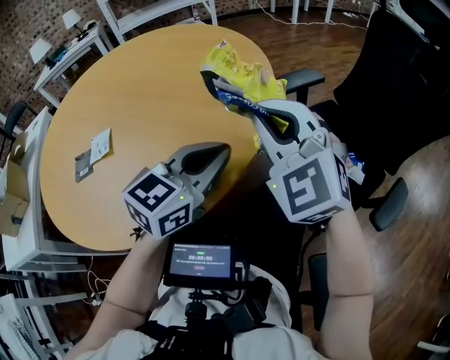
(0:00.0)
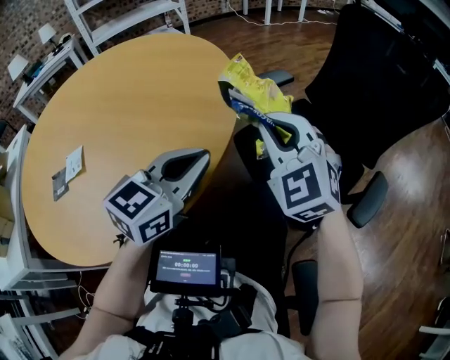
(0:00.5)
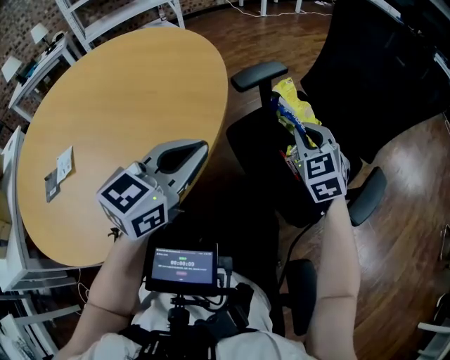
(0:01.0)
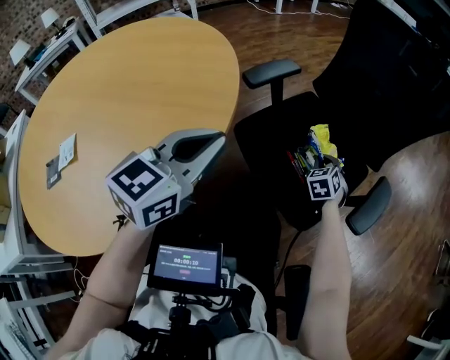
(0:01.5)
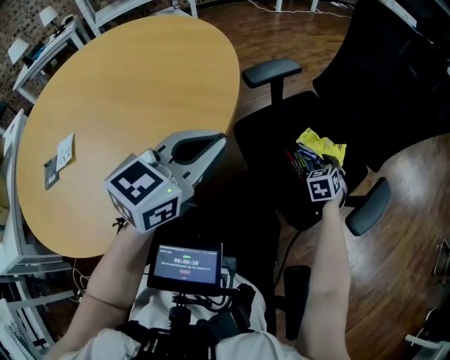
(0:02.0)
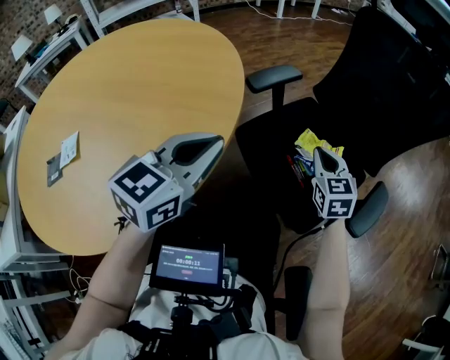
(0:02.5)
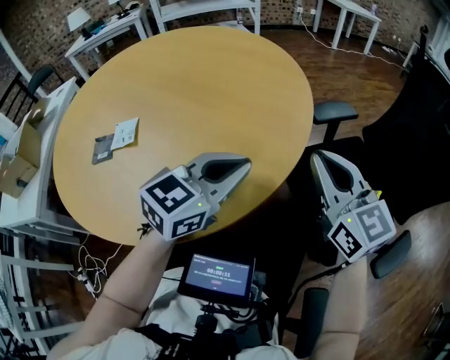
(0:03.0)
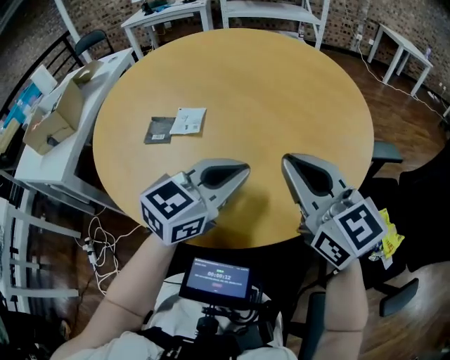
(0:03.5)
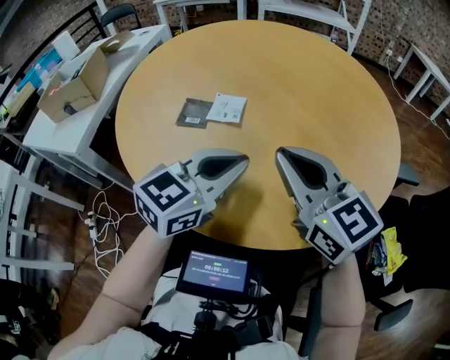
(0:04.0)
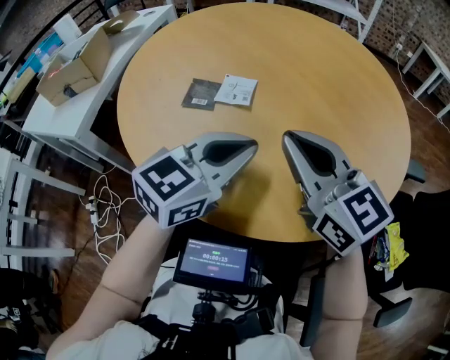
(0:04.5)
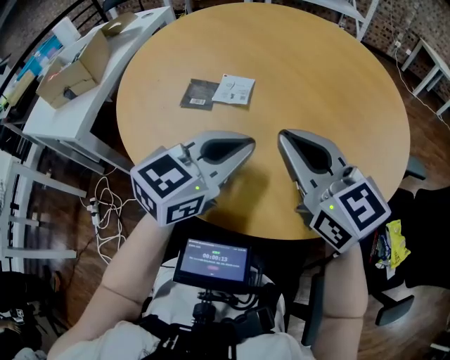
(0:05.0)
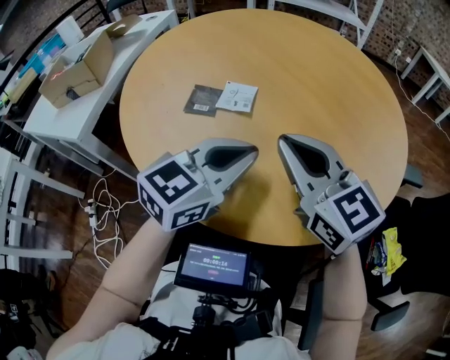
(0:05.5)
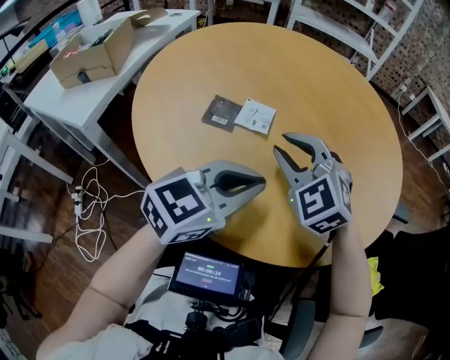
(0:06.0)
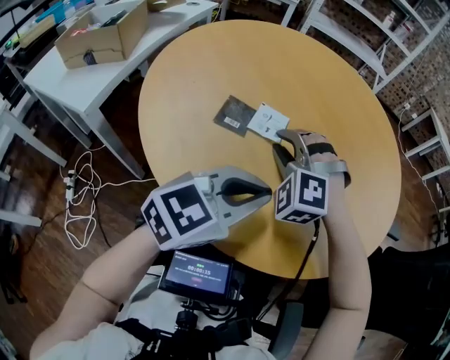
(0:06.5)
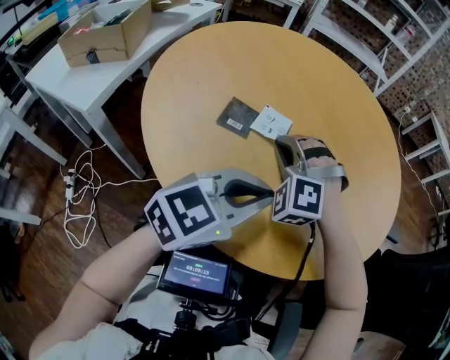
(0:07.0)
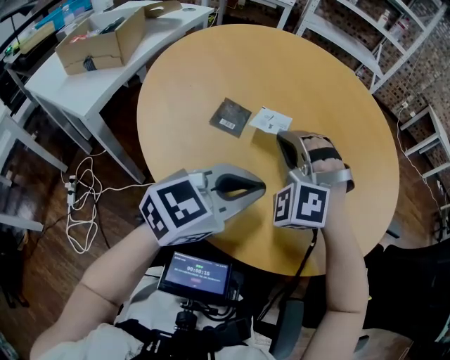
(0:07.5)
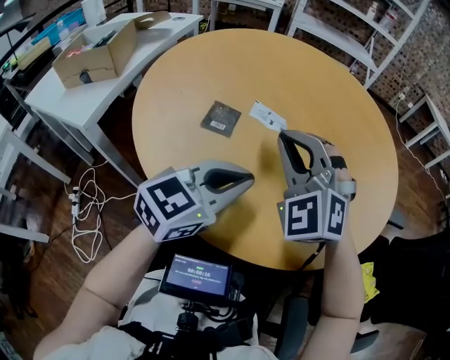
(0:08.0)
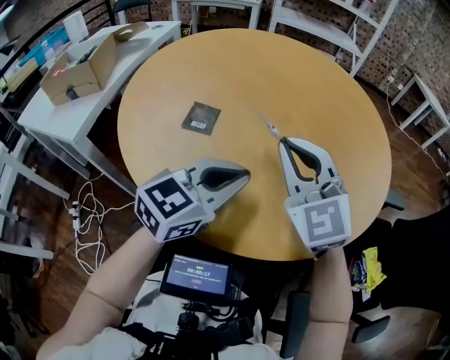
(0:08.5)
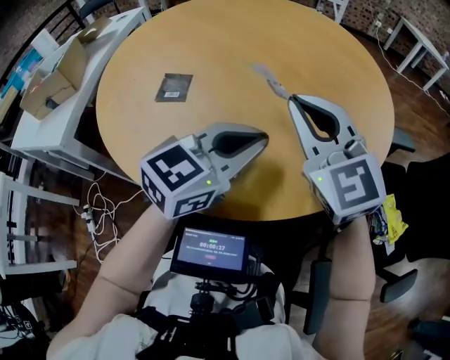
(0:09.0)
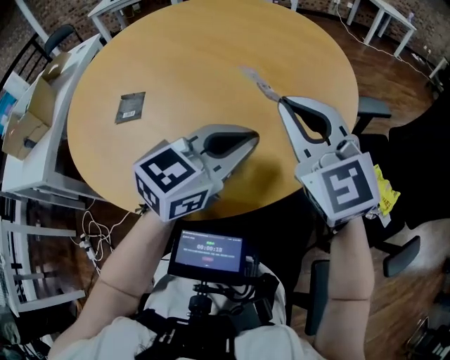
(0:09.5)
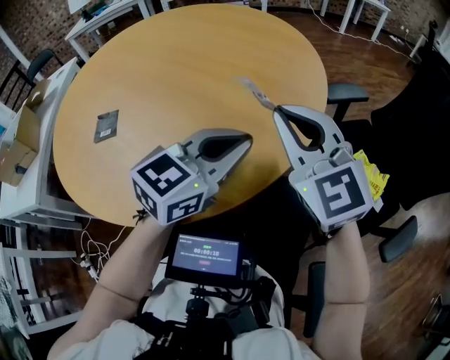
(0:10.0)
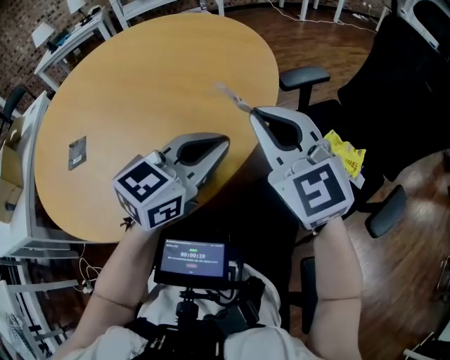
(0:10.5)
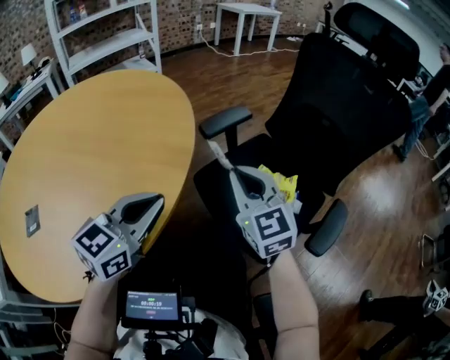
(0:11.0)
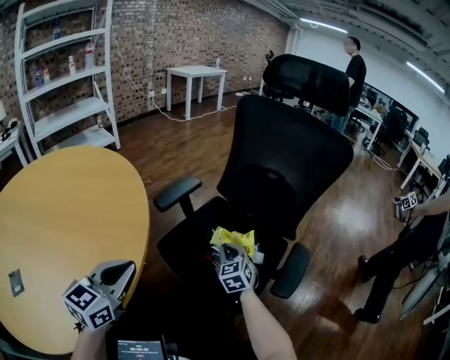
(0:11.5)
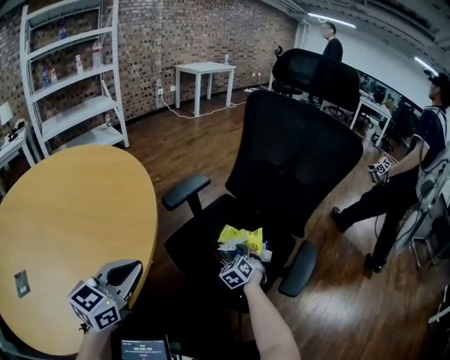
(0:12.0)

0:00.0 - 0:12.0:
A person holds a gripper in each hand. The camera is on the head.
0:00.0 - 0:02.0: The left gripper changes place by some 10 cm; the right gripper shifts by some 50 cm, points its fingers about 30 degrees further downward, and opens.
0:02.0 - 0:04.0: The left gripper moves roughly 35 cm, and swivels roughly 30 degrees; the right gripper ends up about 70 cm from where it was, angles its fingers upward, by some 40 degrees, and closes its fingers.
0:04.0 - 0:06.0: The right gripper moves to the left, forward and downward, some 10 cm, and rotates around the line of its fingers by some 40 degrees, counterclockwise from behind.
0:06.0 - 0:08.0: The right gripper goes about 5 cm upward.
0:08.0 - 0:10.0: The grippers both shift to the right by roughly 25 cm. The right gripper rolls clockwise, seen from behind, by some 40 degrees. Meanwhile the left gripper swivels approximately 20 degrees.
0:10.0 - 0:12.0: The left gripper ends up some 10 cm from where it was. Meanwhile the right gripper shifts by about 50 cm, tilts its fingers some 30 degrees downward, and opens.

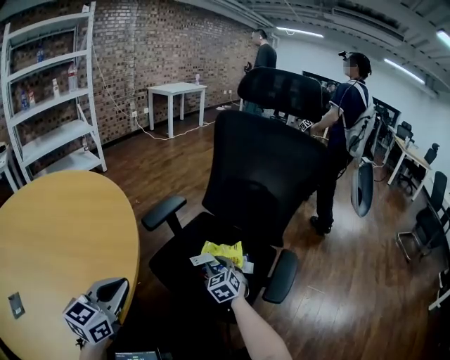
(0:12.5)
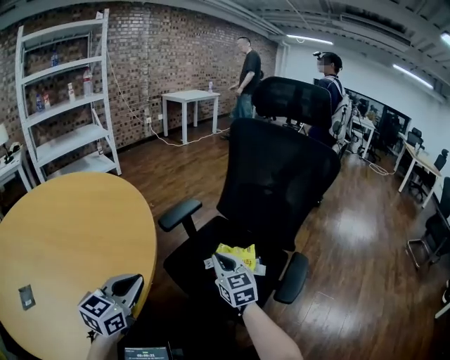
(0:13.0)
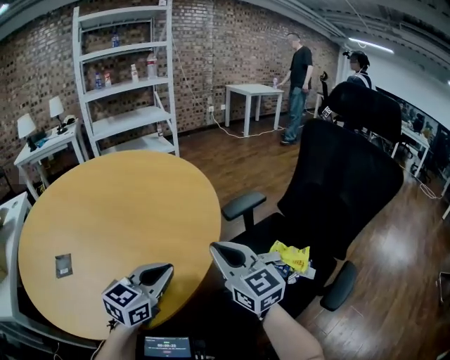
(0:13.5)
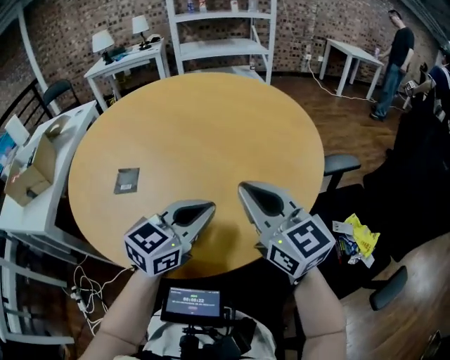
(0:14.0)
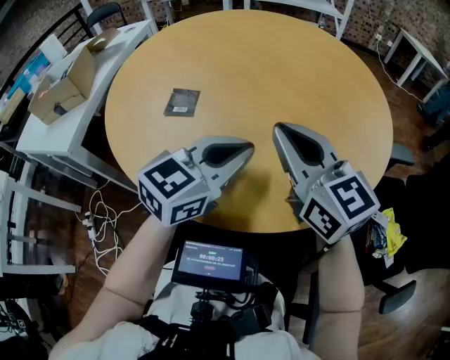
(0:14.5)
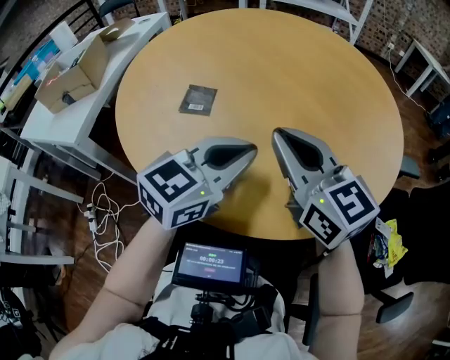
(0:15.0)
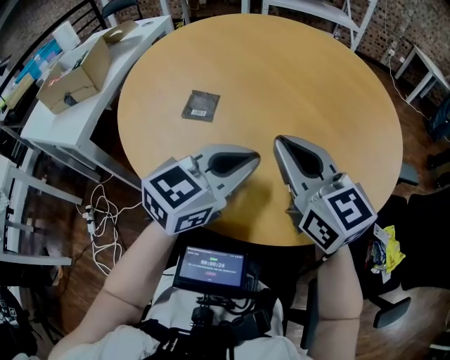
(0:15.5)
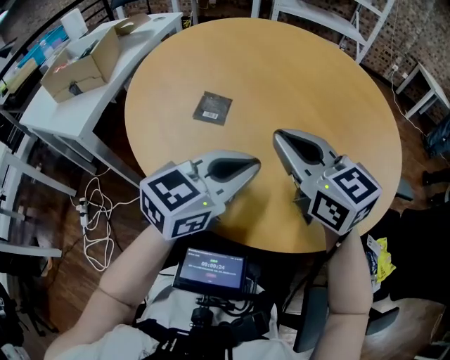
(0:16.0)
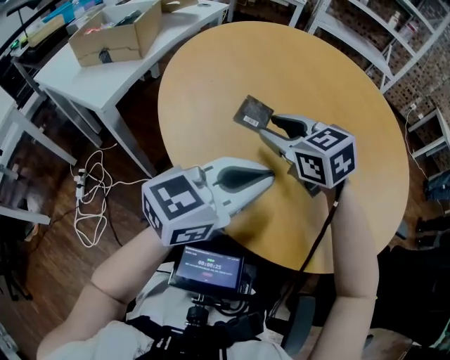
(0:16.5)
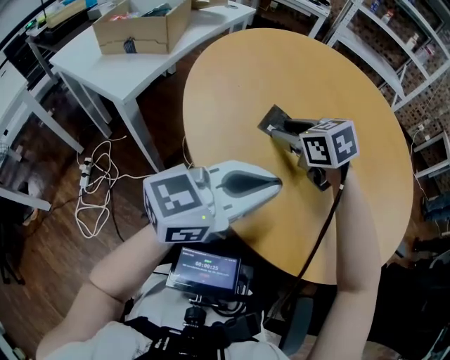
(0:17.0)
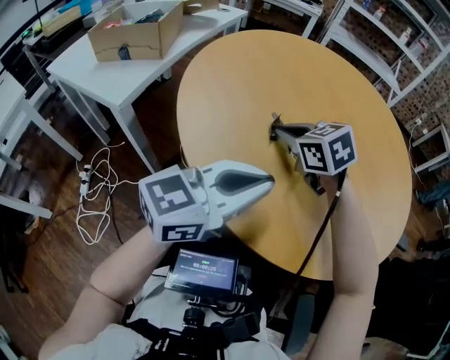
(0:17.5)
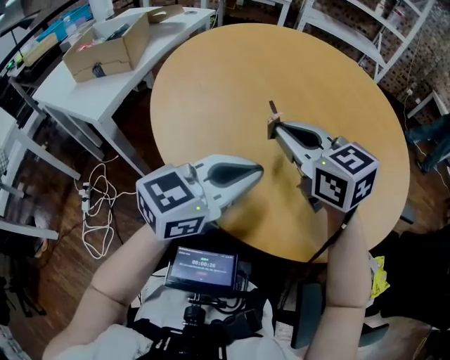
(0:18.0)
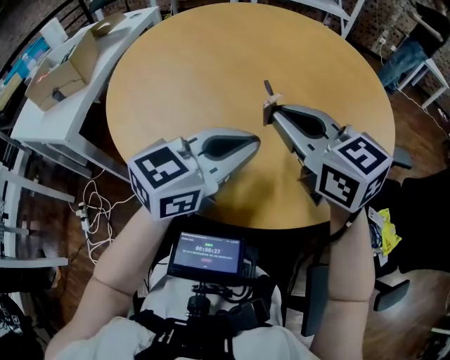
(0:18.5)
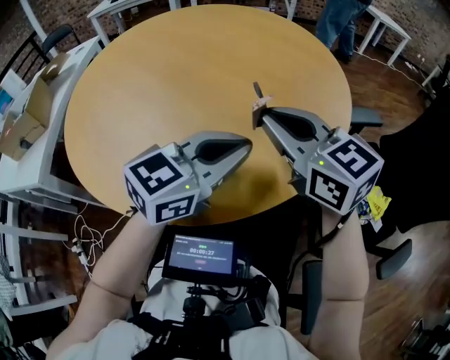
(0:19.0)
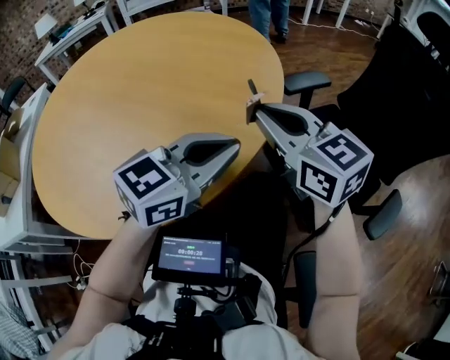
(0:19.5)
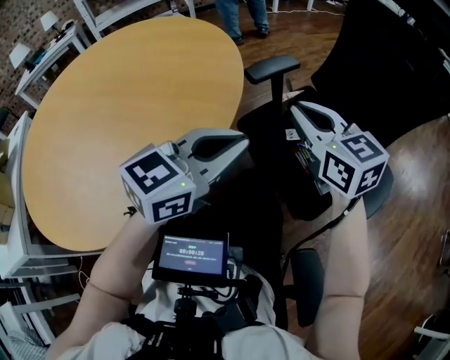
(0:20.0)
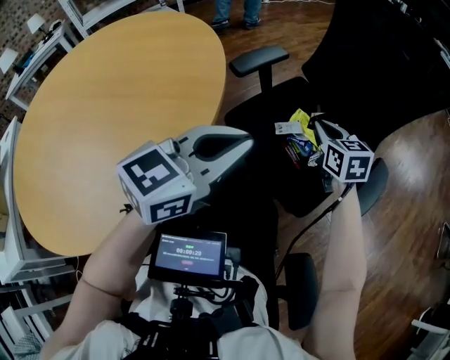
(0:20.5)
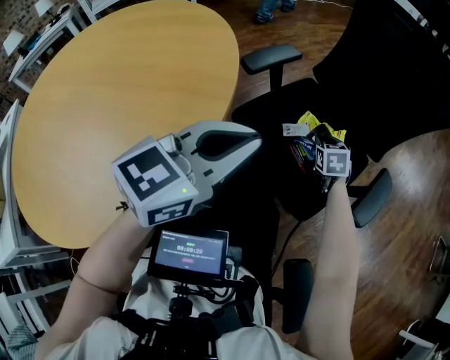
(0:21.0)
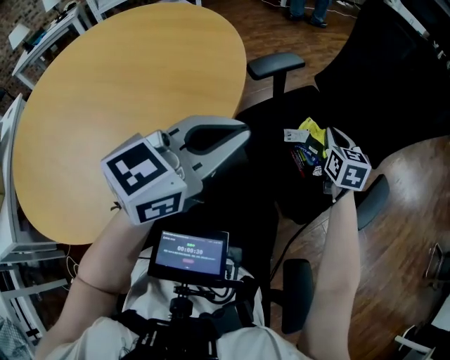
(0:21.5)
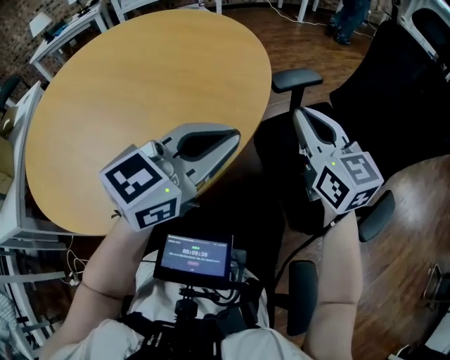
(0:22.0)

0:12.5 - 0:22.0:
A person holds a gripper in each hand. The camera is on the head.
0:12.5 - 0:14.5: The left gripper shifts by some 25 cm, and rotates roughly 30 degrees. Meanwhile the right gripper shifts by roughly 60 cm, rotates about 70 degrees, and closes.
0:14.5 - 0:16.5: The right gripper is displaced to the left, forward and downward by approximately 25 cm, tilts its fingers about 30 degrees downward, and opens its fingers, while the left gripper travels to the left by some 10 cm.
0:16.5 - 0:18.0: The right gripper moves about 5 cm, and closes.
0:18.0 - 0:20.0: Both grippers are carried roughly 50 cm. The left gripper changes its angle by some 40 degrees, while the right gripper rotates roughly 60 degrees.
0:20.0 - 0:22.0: The left gripper shifts by some 5 cm, while the right gripper goes downward and returns, some 25 cm each way.

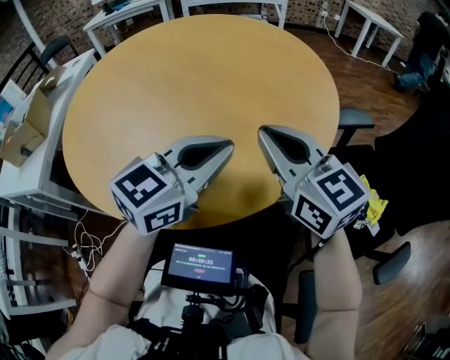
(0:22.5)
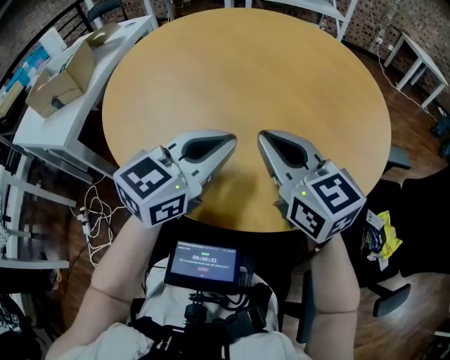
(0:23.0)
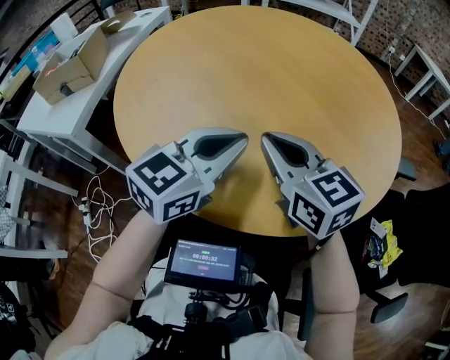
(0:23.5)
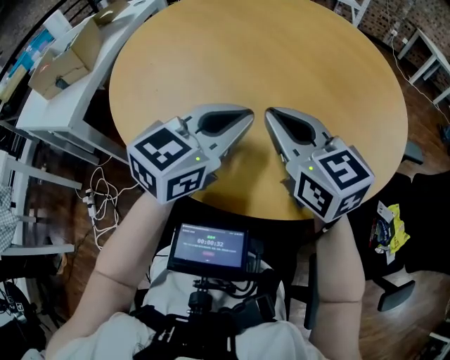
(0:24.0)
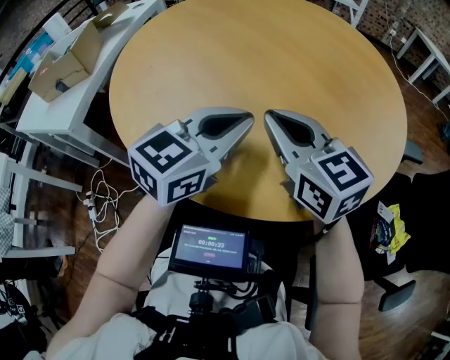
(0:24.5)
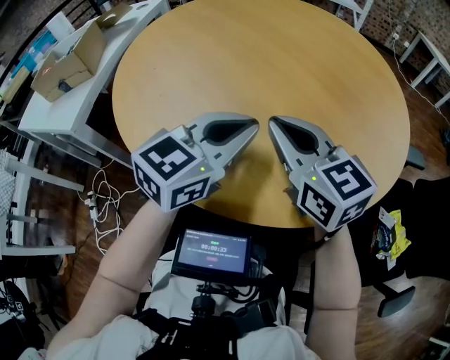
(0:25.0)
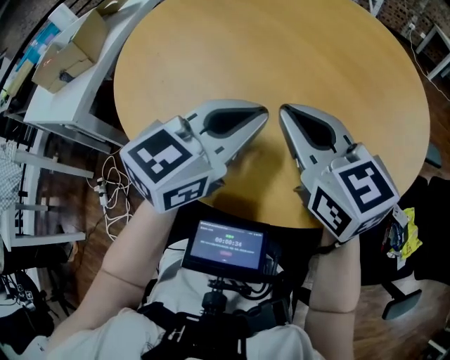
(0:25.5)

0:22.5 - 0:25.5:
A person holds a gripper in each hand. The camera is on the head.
0:22.5 - 0:24.0: Both grippers move to the left, approximately 15 cm.
0:24.0 - 0:25.5: Both grippers stay put.

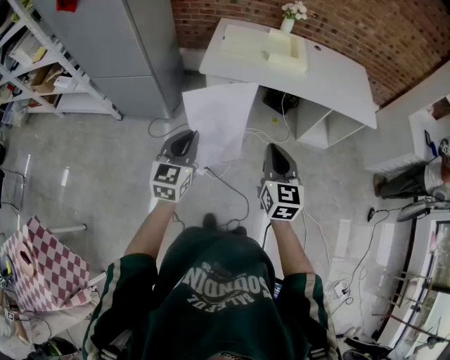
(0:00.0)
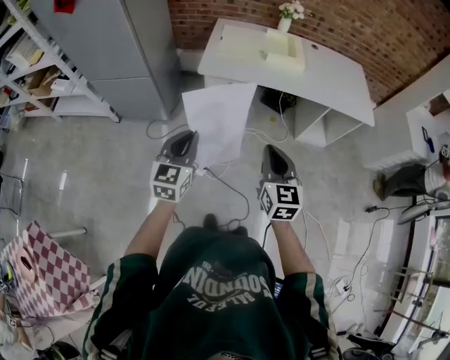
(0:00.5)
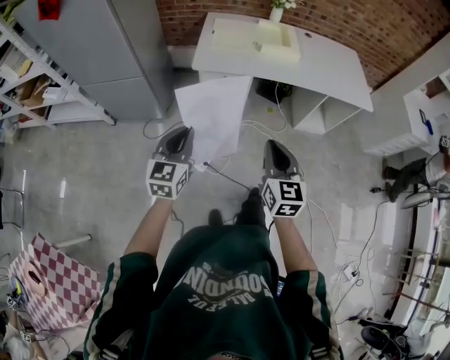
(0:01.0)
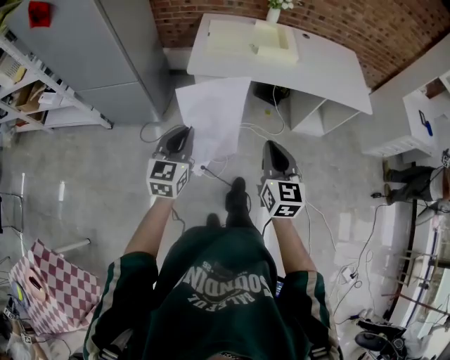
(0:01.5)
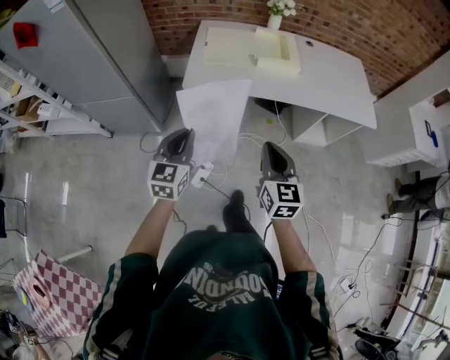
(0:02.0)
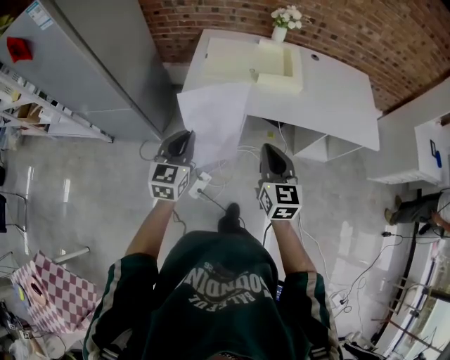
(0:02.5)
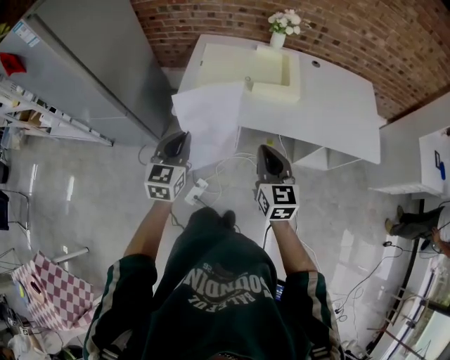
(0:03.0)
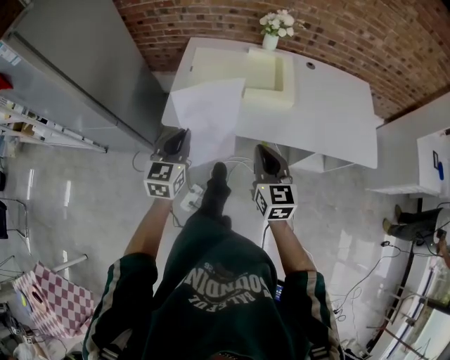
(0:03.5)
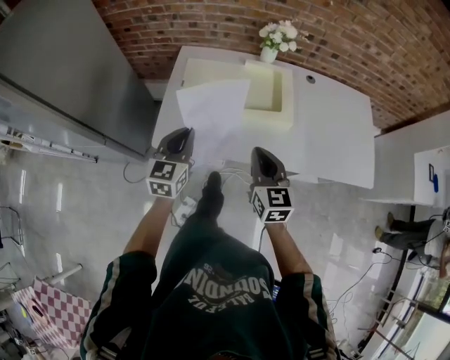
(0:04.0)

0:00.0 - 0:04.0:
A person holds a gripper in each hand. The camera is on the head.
0:00.0 - 0:02.0: The two grippers go roughly 15 cm forward.
0:02.0 - 0:04.0: Both grippers travel together forward, approximately 35 cm.
